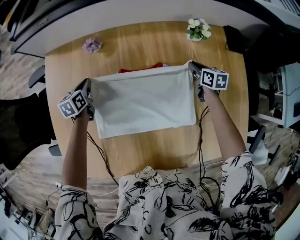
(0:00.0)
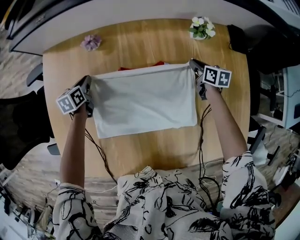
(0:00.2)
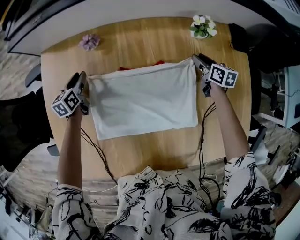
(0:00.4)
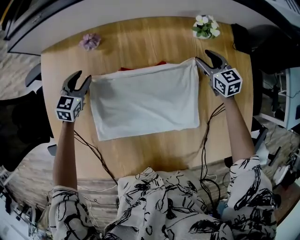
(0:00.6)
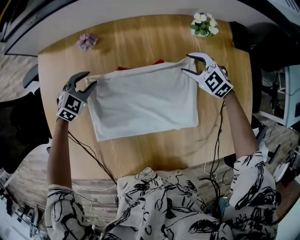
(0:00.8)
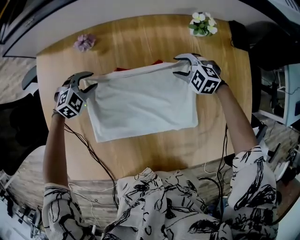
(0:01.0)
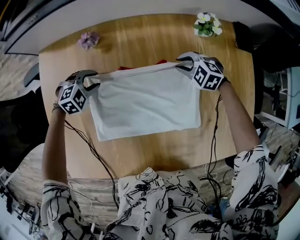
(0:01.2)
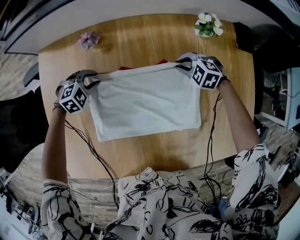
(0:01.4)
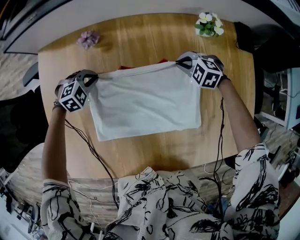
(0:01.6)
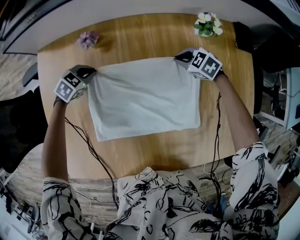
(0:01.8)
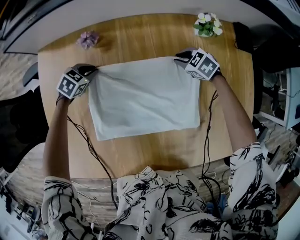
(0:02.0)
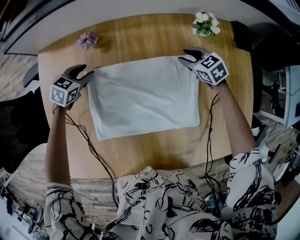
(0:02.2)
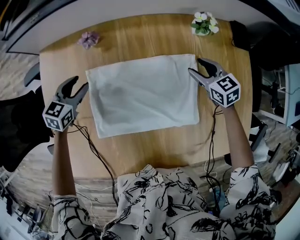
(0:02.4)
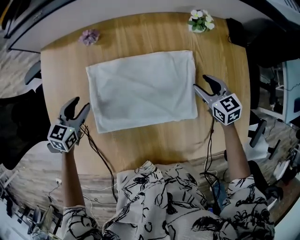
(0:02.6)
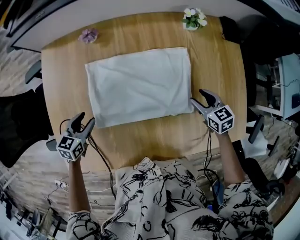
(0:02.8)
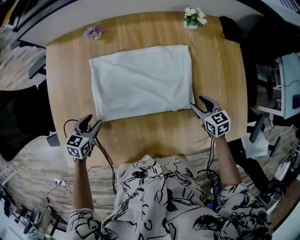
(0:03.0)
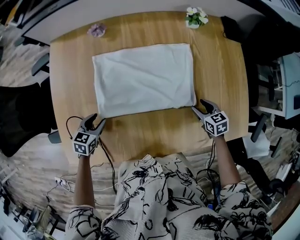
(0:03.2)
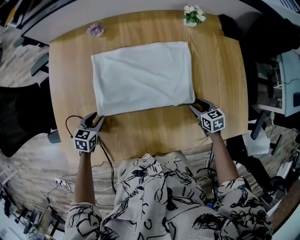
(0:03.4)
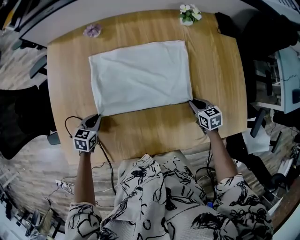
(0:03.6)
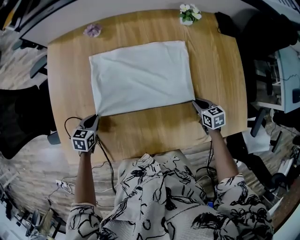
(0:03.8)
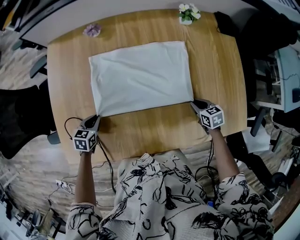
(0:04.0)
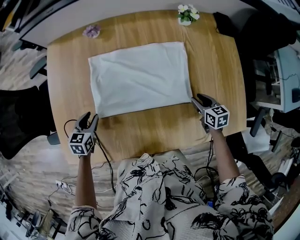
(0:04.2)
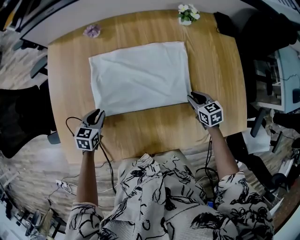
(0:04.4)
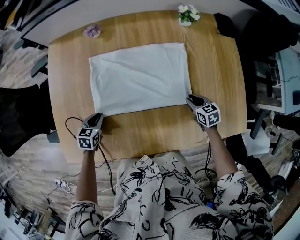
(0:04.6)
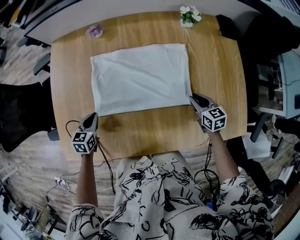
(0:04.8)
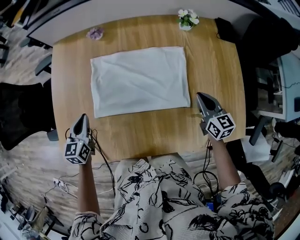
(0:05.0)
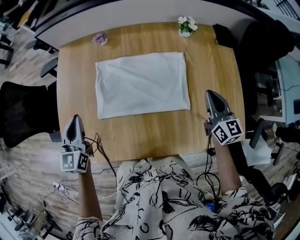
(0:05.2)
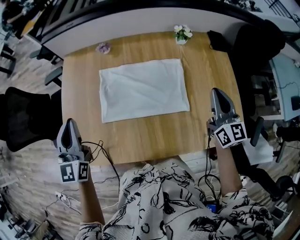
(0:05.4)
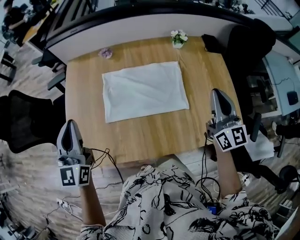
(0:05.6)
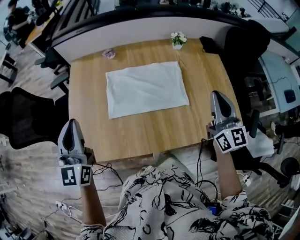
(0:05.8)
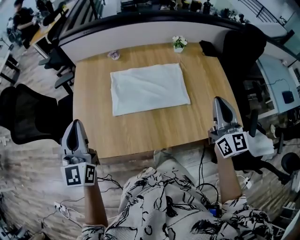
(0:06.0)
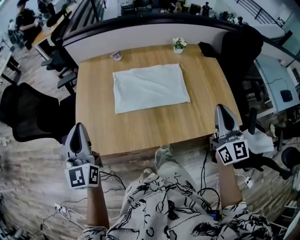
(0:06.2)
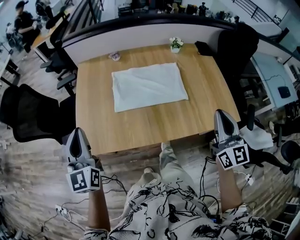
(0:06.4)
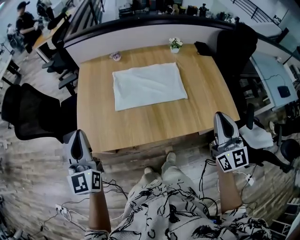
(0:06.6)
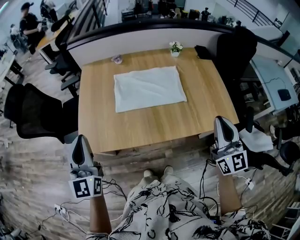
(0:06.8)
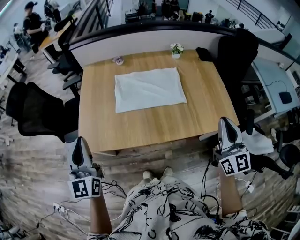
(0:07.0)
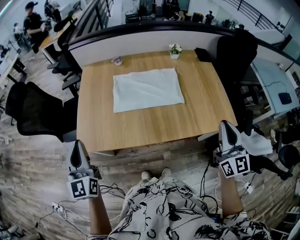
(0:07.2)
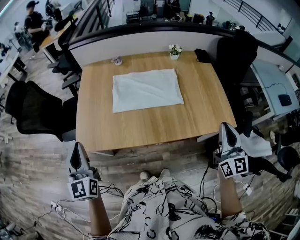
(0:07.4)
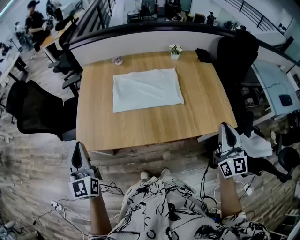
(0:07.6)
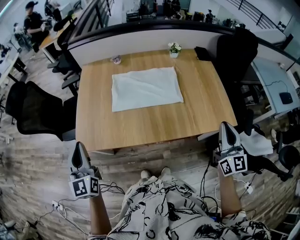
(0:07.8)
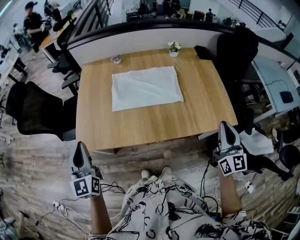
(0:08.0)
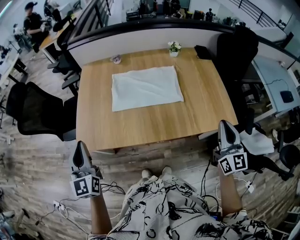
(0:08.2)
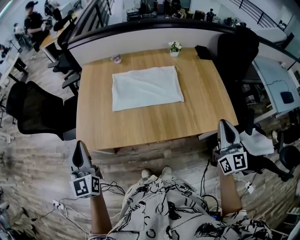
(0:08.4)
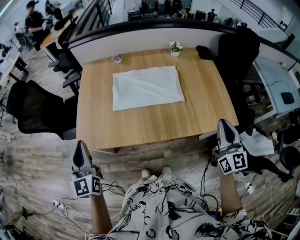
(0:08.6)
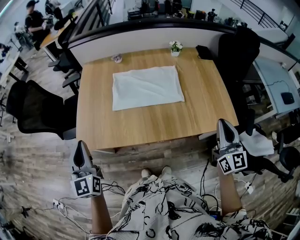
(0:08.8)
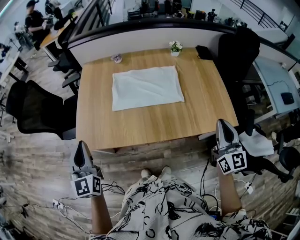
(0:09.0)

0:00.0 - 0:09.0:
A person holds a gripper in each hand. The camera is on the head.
0:00.0 - 0:01.6: The left gripper heads downward and to the right, covering roughly 10 cm, and rolls clockwise, seen from behind, by some 80 degrees. The right gripper shifts some 10 cm to the left, rotates around the line of its fingers by approximately 80 degrees, counterclockwise from behind, and opens and closes again.
0:01.6 - 0:03.0: The left gripper moves roughly 25 cm, rolls counterclockwise, seen from behind, by some 60 degrees, and opens up. The right gripper changes place by about 25 cm, rotates around the line of its fingers by roughly 60 degrees, clockwise from behind, and opens up.
0:04.4 - 0:06.0: The grippers both shift upward and backward by approximately 40 cm. The right gripper points its fingers some 50 degrees further upward, while the left gripper tips its fingers upward by approximately 50 degrees.
0:06.0 - 0:07.6: Both grippers move backward, about 15 cm.
0:07.6 - 0:09.0: The grippers stay close to where they were, moving slightly.

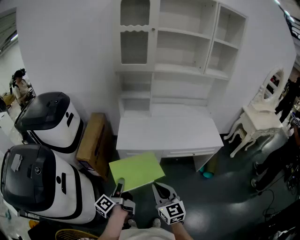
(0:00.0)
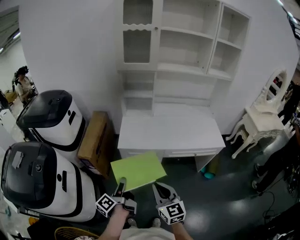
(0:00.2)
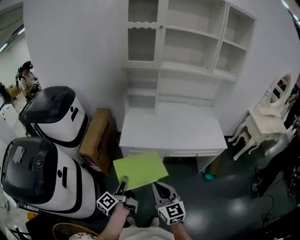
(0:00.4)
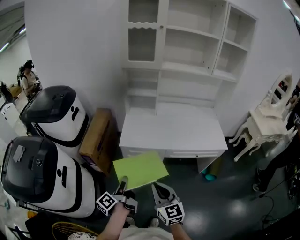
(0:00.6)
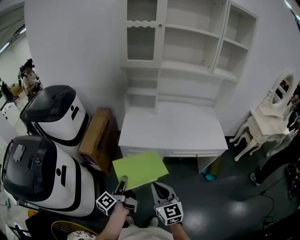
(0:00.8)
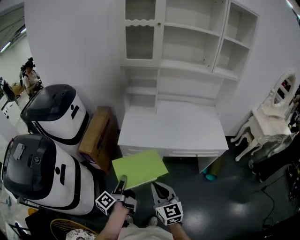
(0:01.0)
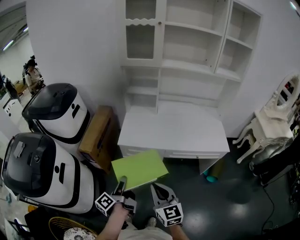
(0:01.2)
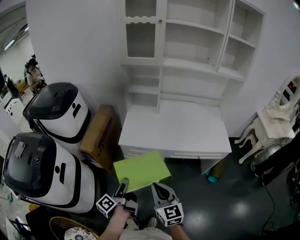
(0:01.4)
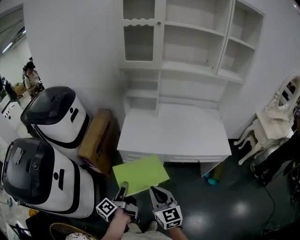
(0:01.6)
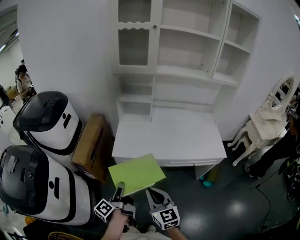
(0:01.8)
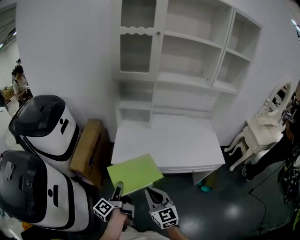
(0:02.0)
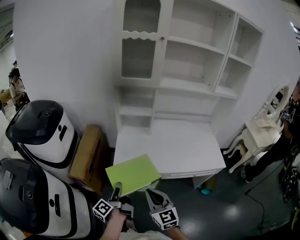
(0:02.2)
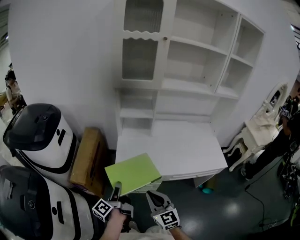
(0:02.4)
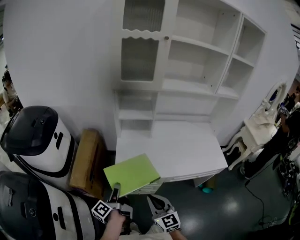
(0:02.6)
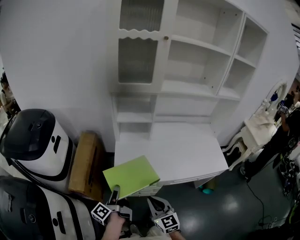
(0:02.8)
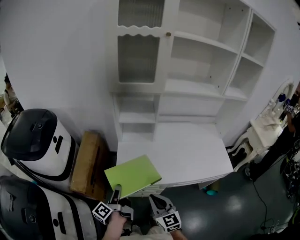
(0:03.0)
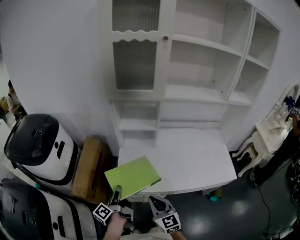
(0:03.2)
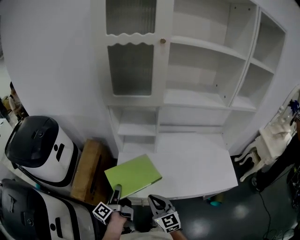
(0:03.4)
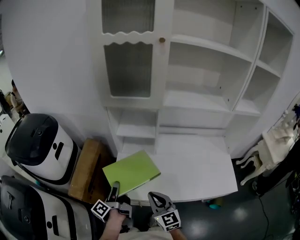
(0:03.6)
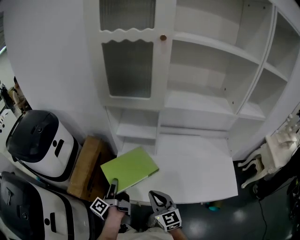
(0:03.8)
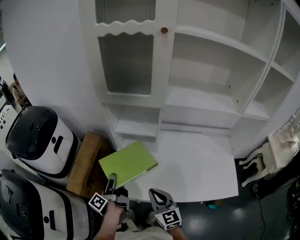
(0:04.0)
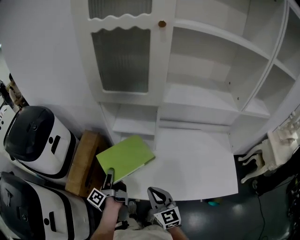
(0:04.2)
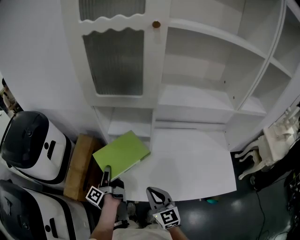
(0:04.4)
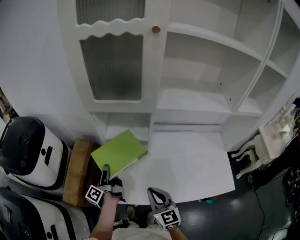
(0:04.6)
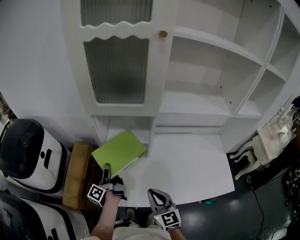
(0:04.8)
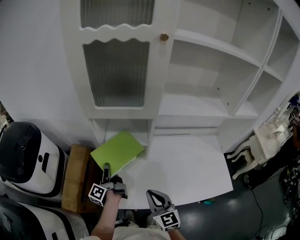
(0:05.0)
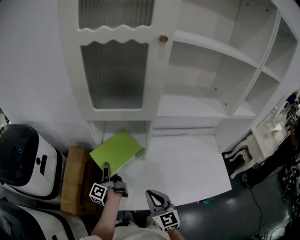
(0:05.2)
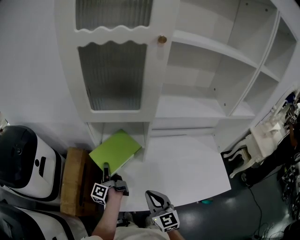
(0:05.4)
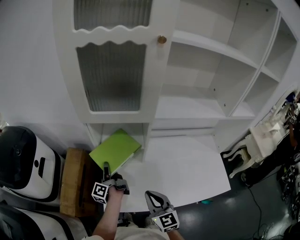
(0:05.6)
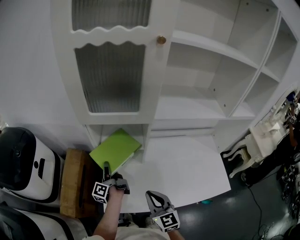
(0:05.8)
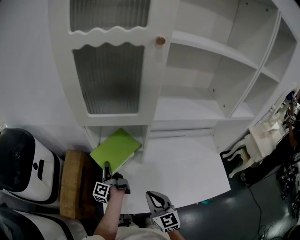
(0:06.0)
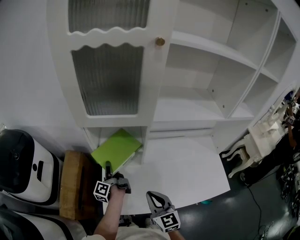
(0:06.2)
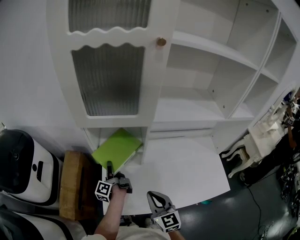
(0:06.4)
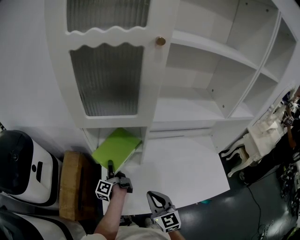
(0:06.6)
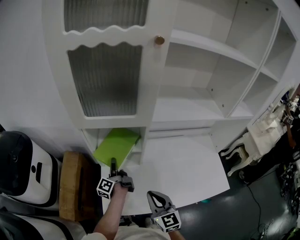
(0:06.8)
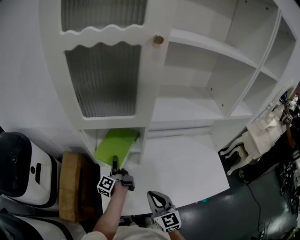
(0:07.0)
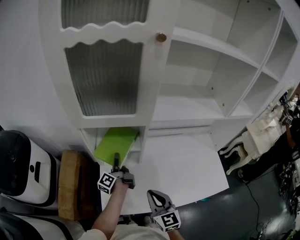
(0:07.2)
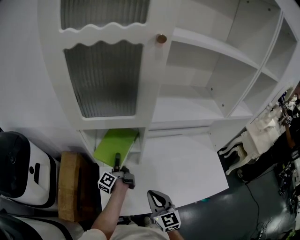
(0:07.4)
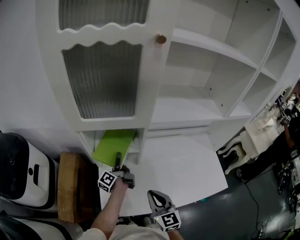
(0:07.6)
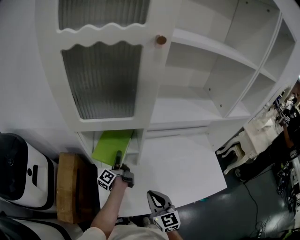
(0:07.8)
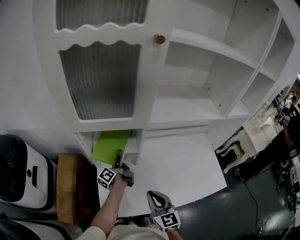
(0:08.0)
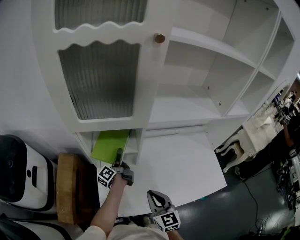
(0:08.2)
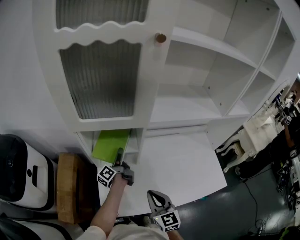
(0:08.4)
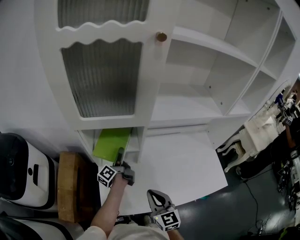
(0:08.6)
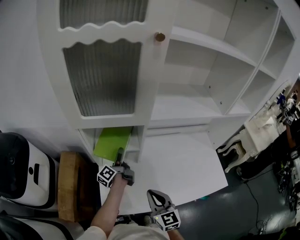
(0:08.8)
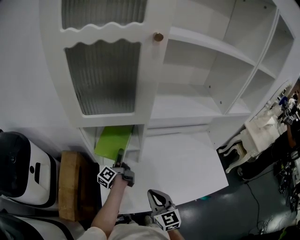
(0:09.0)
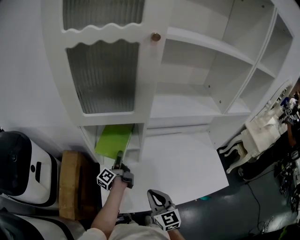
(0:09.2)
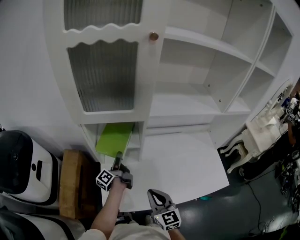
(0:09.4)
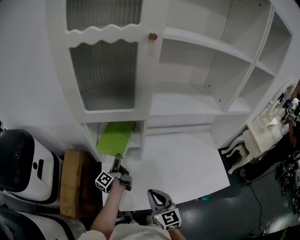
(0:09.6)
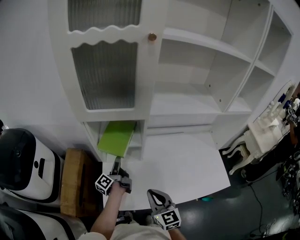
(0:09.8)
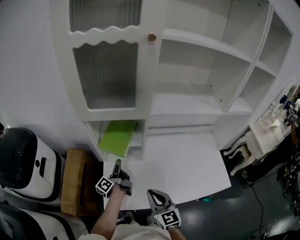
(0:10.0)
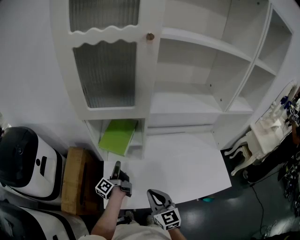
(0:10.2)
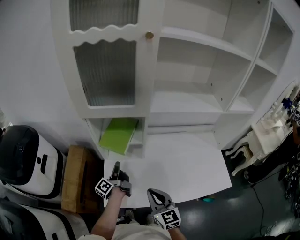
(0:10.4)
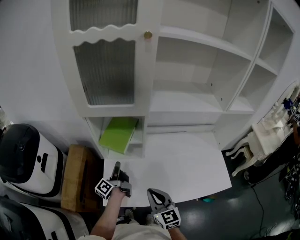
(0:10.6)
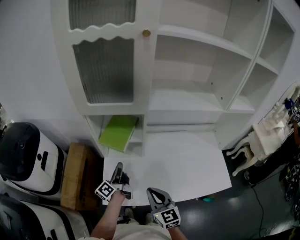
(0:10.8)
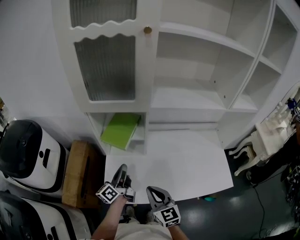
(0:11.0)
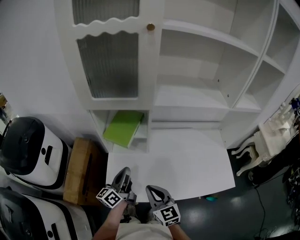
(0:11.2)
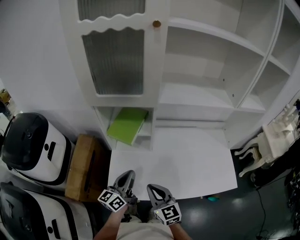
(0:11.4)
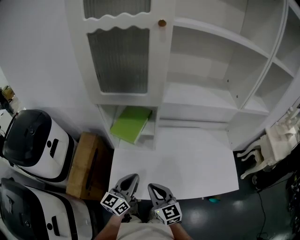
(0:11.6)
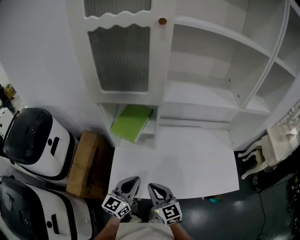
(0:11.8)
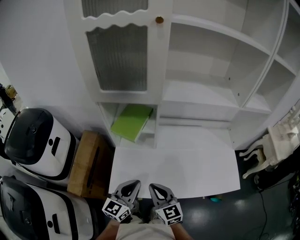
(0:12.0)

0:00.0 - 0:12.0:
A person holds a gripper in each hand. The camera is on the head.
0:00.0 - 0:01.6: The right gripper moves approximately 5 cm. The left gripper heads to the right, covering approximately 5 cm.
0:01.6 - 0:03.0: The two grippers go roughly 25 cm forward.
0:03.0 - 0:04.4: Both grippers travel together forward and to the right, some 20 cm.
0:04.4 - 0:06.0: The left gripper is displaced forward by roughly 10 cm; the right gripper goes approximately 5 cm forward.
0:06.0 - 0:07.6: The left gripper shifts about 10 cm to the right and forward.
0:07.6 - 0:09.0: The grippers stay close to where they were, moving slightly.
0:09.0 - 0:10.4: The left gripper shifts roughly 10 cm backward, and closes.
0:10.4 - 0:12.0: The left gripper is displaced backward and to the right by approximately 20 cm, and rotates around the line of its fingers by approximately 70 degrees, clockwise from behind.

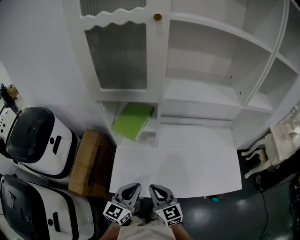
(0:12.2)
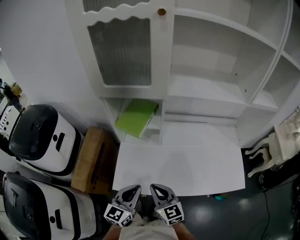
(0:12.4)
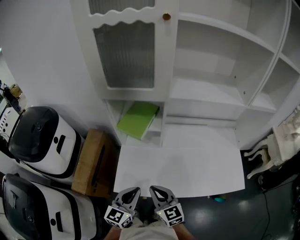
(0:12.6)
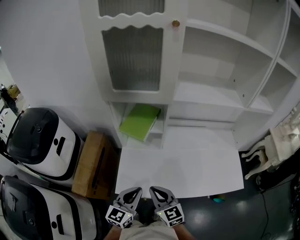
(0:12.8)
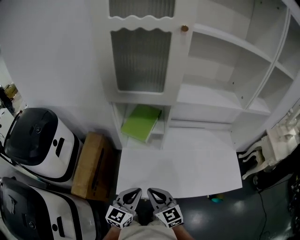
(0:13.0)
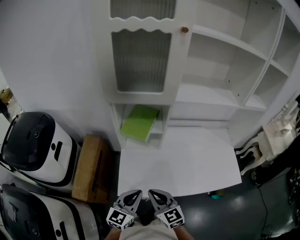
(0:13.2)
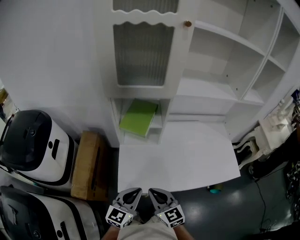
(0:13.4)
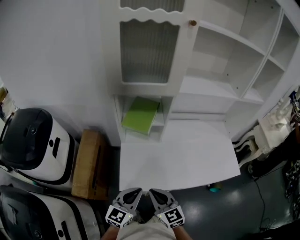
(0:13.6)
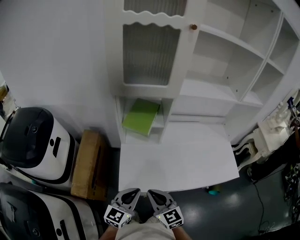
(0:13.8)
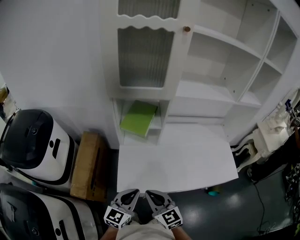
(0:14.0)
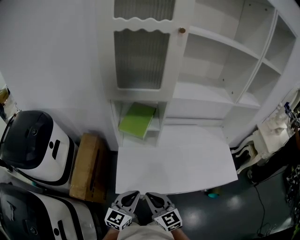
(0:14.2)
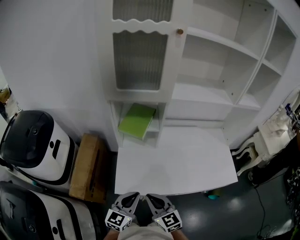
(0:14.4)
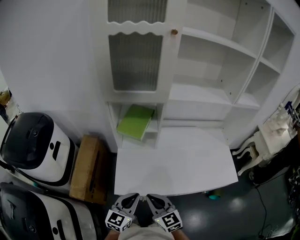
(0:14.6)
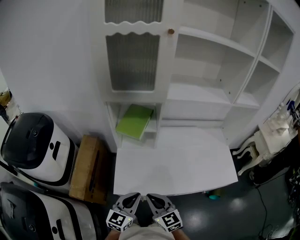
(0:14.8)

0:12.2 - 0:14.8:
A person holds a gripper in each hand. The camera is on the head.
0:12.2 - 0:13.4: The two grippers go approximately 10 cm to the left.
0:13.4 - 0:14.8: There are only small adjustments of the grippers.
